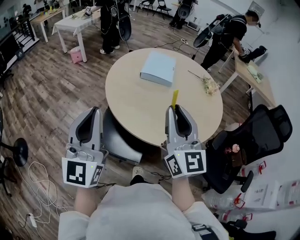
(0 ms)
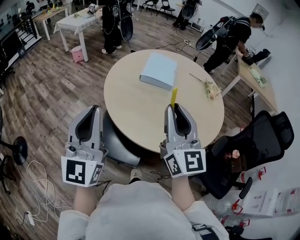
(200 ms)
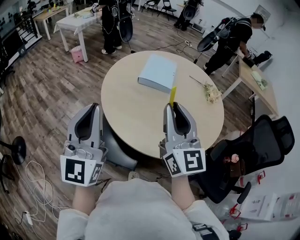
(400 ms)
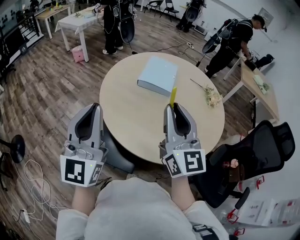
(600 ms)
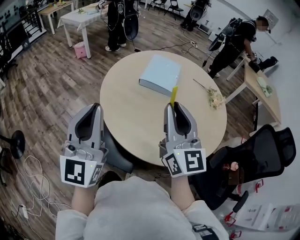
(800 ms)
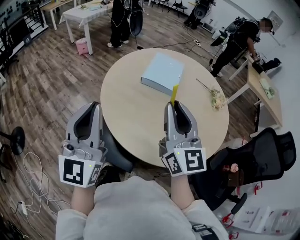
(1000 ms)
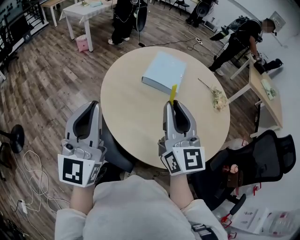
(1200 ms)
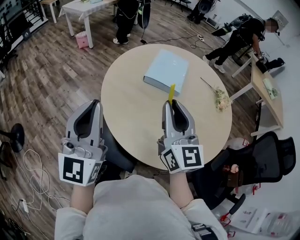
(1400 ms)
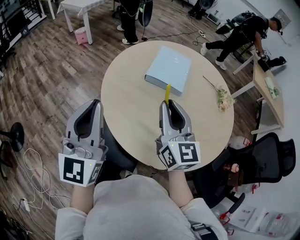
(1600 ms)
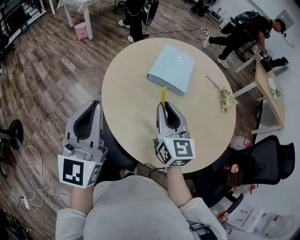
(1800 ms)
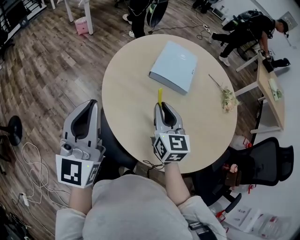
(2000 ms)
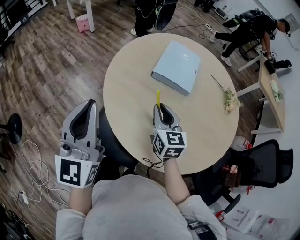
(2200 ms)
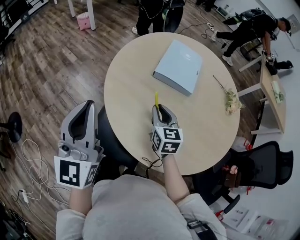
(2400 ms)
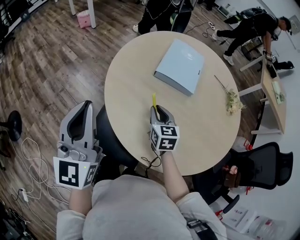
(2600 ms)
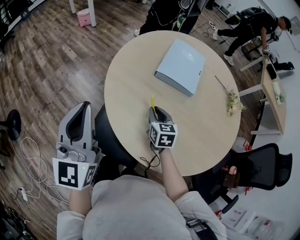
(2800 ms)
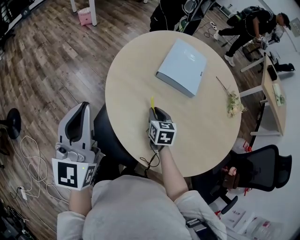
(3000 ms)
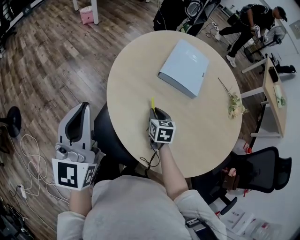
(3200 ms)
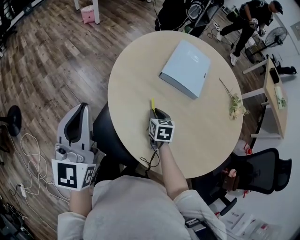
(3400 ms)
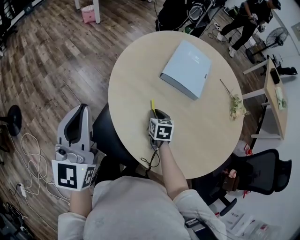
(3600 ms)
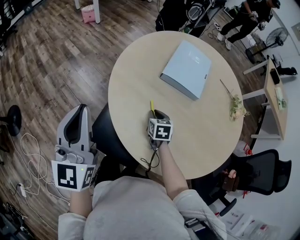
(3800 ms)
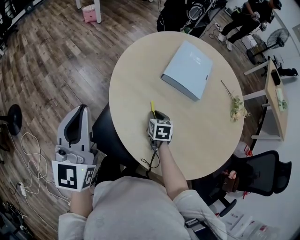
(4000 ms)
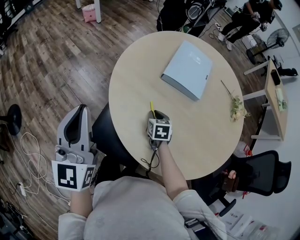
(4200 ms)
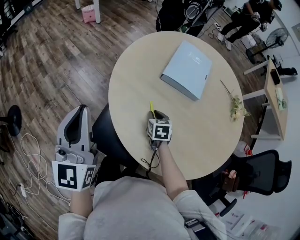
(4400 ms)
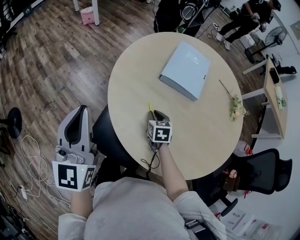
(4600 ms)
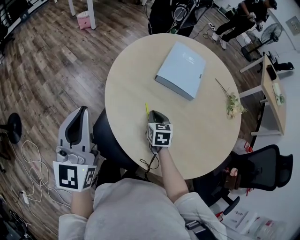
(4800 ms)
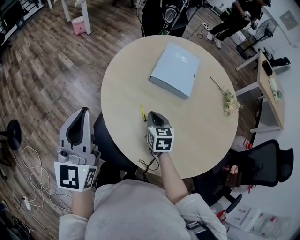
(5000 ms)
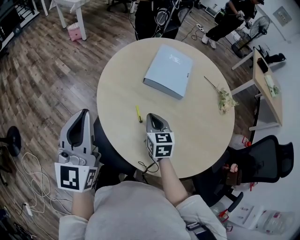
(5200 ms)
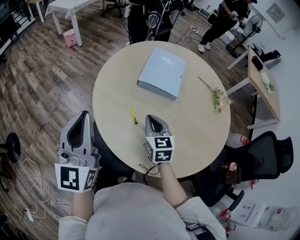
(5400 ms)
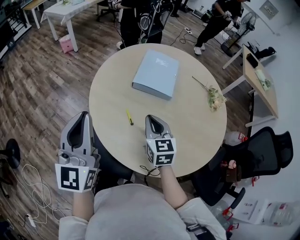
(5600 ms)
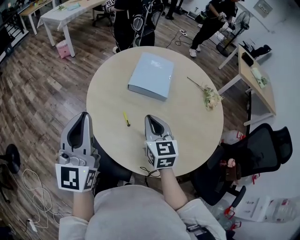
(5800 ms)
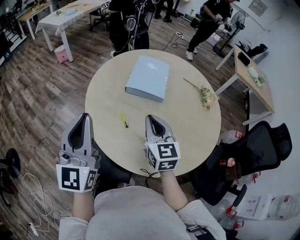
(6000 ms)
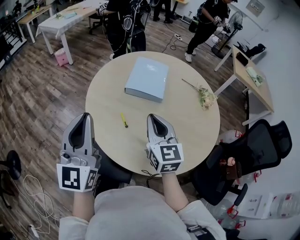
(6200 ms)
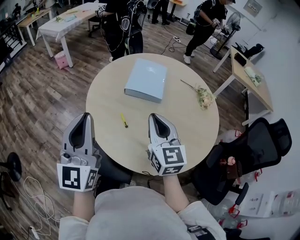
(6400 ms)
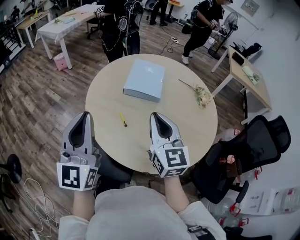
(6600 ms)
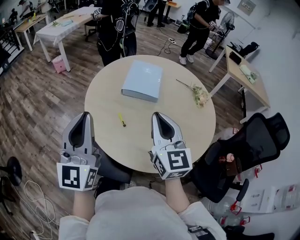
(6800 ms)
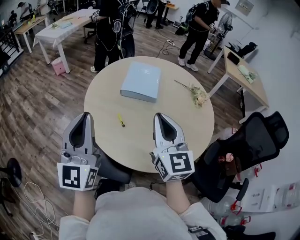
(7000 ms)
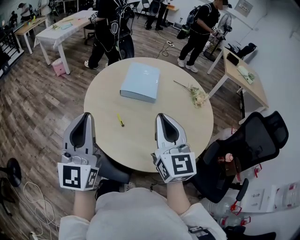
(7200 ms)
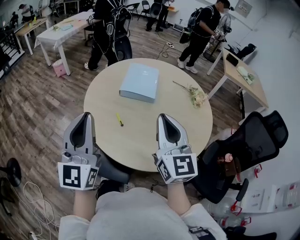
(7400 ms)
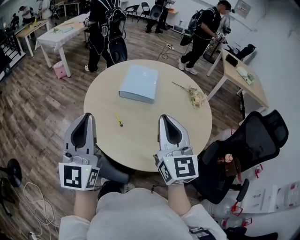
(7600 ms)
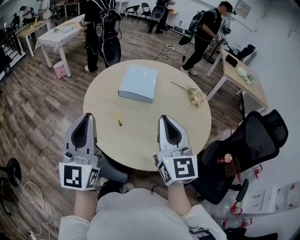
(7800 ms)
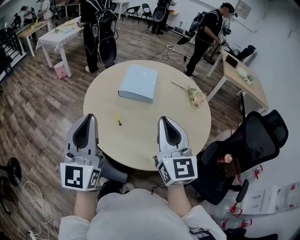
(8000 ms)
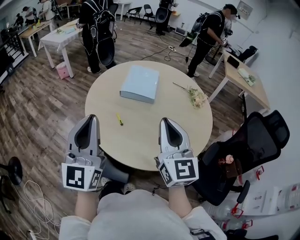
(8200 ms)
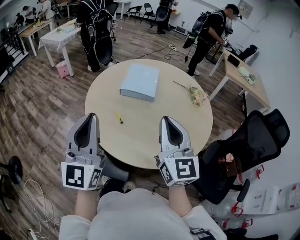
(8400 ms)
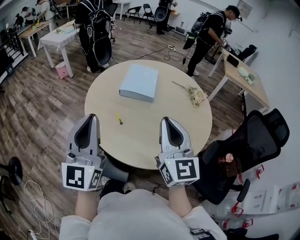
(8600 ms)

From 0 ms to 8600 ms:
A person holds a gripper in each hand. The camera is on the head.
From 0 ms to 1400 ms: The two grippers go about 20 cm forward.
From 1400 ms to 2800 ms: The right gripper moves downward and forward, about 30 cm, and tilts its fingers approximately 40 degrees downward; the left gripper goes approximately 15 cm forward, to the left and downward.
From 2800 ms to 4400 ms: The right gripper shifts some 10 cm downward.
From 4400 ms to 5800 ms: The right gripper heads upward, covering about 25 cm, and angles its fingers upward, by roughly 30 degrees, while the left gripper travels to the right and upward by about 10 cm.
From 5800 ms to 7200 ms: The left gripper travels backward by some 10 cm, while the right gripper travels upward and backward by approximately 20 cm, and rotates approximately 20 degrees.
From 7200 ms to 8600 ms: The right gripper is displaced backward by approximately 5 cm. Meanwhile the left gripper shifts by roughly 5 cm.

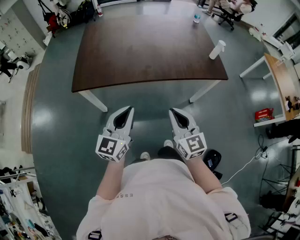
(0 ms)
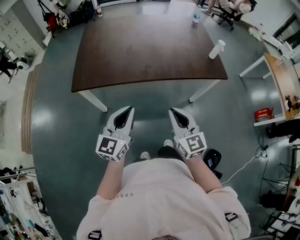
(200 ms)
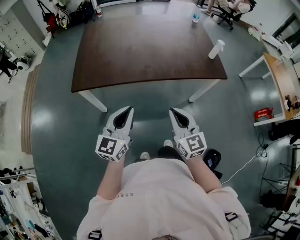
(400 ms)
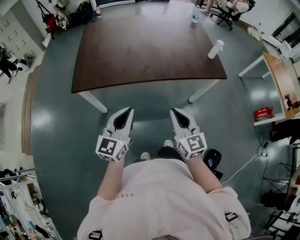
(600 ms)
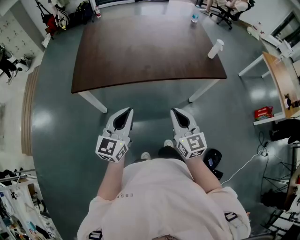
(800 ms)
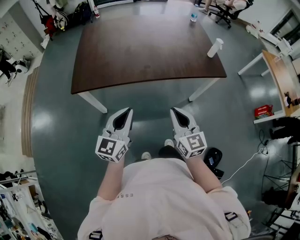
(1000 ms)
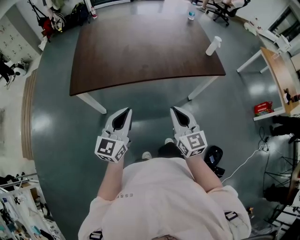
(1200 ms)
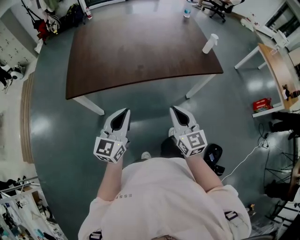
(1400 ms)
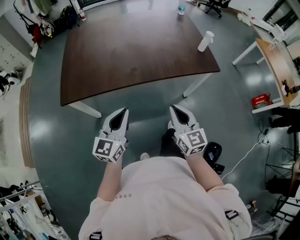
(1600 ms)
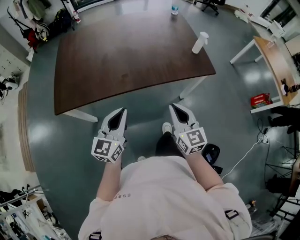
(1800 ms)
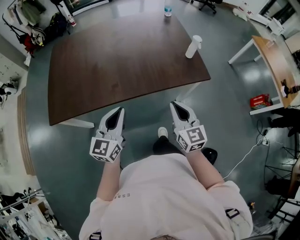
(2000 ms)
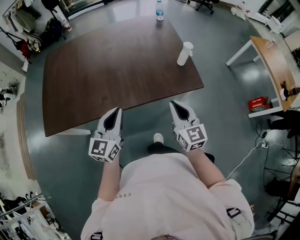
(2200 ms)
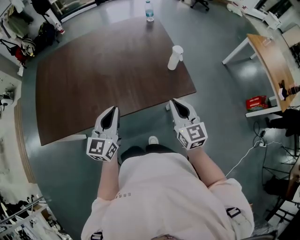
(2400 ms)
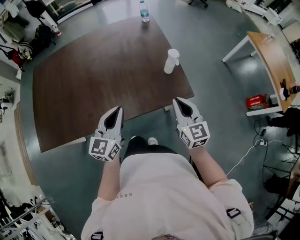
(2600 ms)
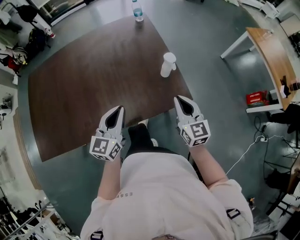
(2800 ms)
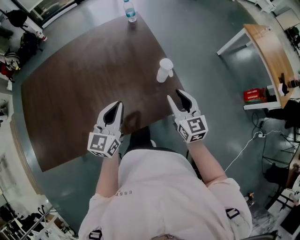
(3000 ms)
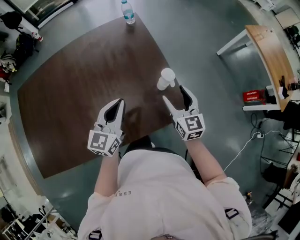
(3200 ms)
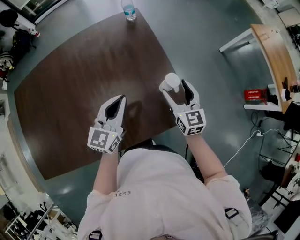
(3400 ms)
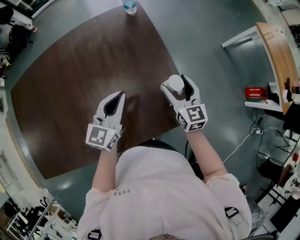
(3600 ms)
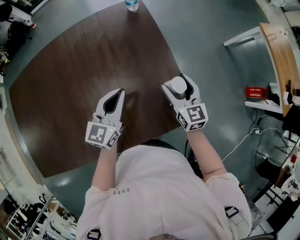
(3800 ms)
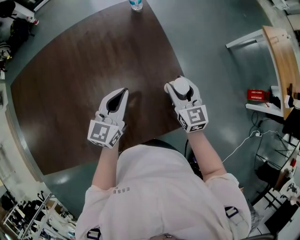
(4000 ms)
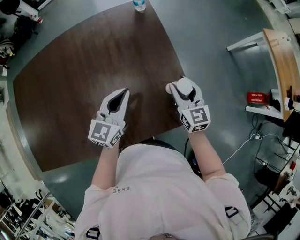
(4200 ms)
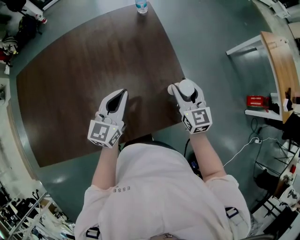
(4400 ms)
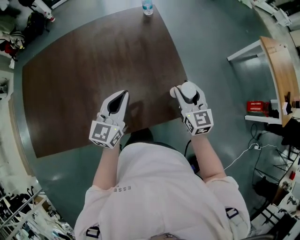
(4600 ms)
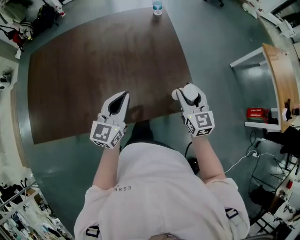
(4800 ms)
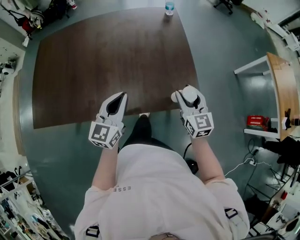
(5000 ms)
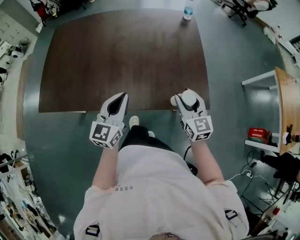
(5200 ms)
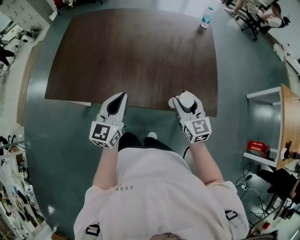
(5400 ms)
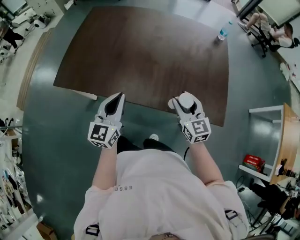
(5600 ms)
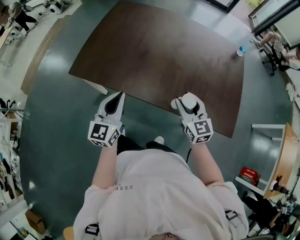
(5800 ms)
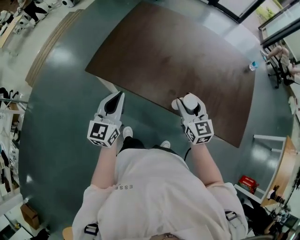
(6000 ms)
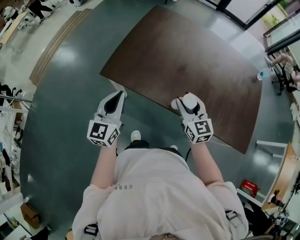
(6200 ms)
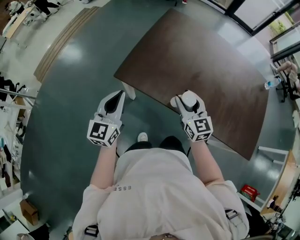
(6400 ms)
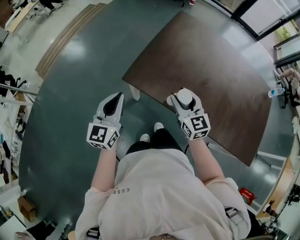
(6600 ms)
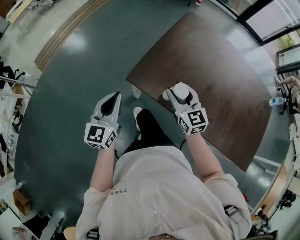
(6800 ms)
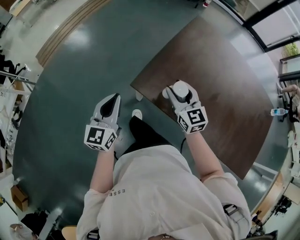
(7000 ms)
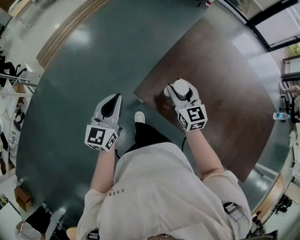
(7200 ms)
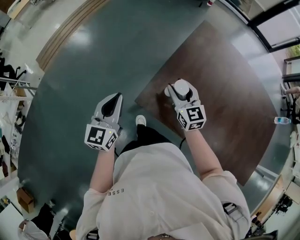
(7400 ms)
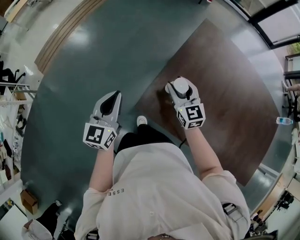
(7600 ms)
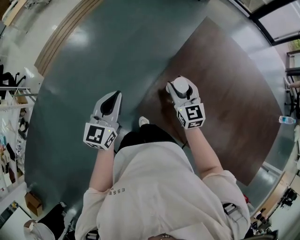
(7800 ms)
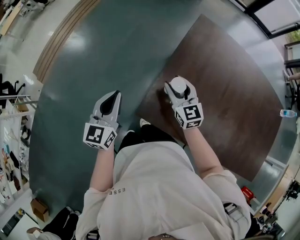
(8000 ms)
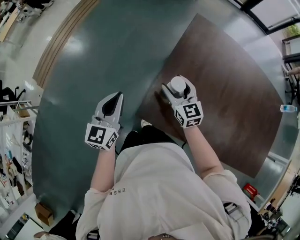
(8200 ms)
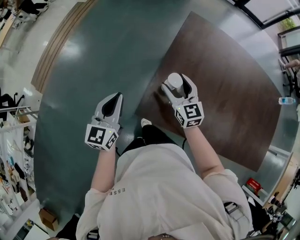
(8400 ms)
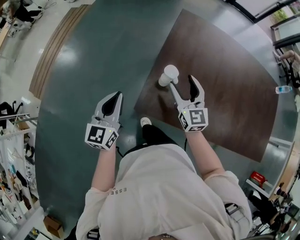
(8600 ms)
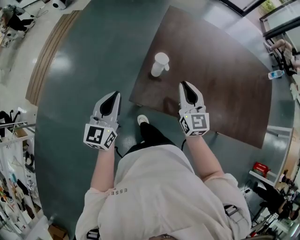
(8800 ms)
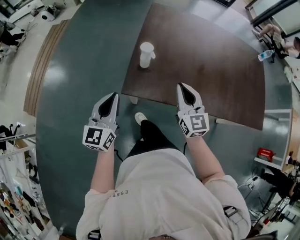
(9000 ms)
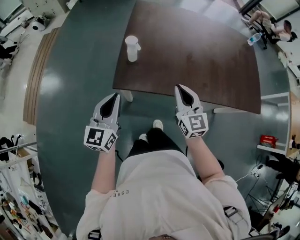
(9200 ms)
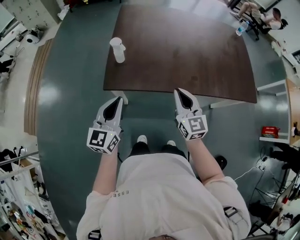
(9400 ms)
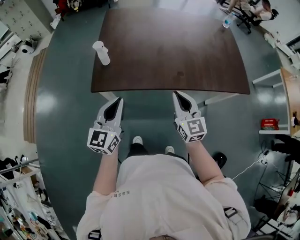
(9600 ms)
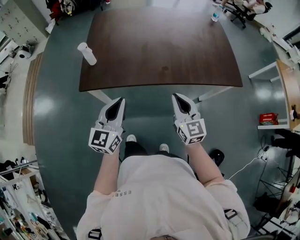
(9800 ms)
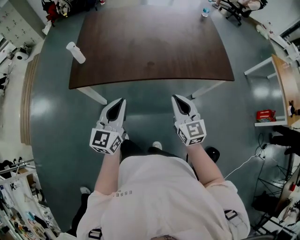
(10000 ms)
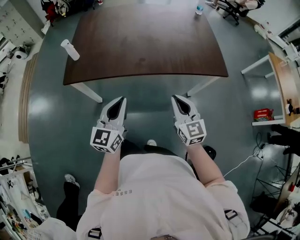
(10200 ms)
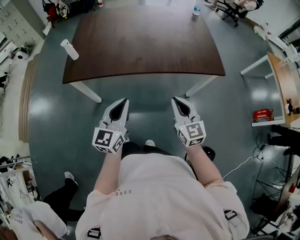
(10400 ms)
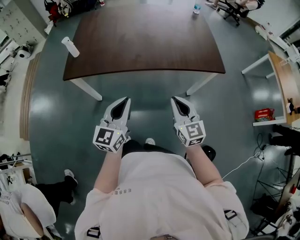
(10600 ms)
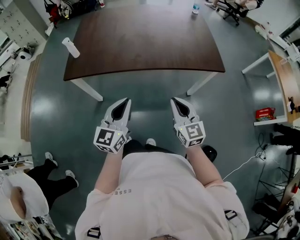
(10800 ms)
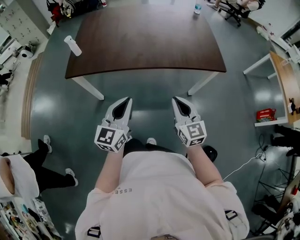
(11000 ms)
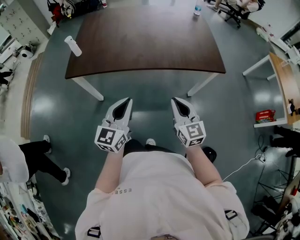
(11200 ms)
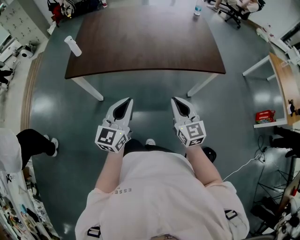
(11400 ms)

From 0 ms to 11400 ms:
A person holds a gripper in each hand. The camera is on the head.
From 0 ms to 1400 ms: The grippers stay close to where they were, moving slightly.
From 1400 ms to 2800 ms: The two grippers travel together, forward and to the right, approximately 40 cm.
From 2800 ms to 4200 ms: Both grippers move forward, some 15 cm. The right gripper opens.
From 4200 ms to 5600 ms: The left gripper changes place by roughly 35 cm, and rotates approximately 40 degrees, while the right gripper changes place by roughly 30 cm, and changes its angle by some 40 degrees.
From 5600 ms to 7200 ms: The pair of grippers is taken some 60 cm. The right gripper turns by roughly 20 degrees. Meanwhile the left gripper changes its angle by about 20 degrees.
From 7200 ms to 8600 ms: The left gripper moves forward, about 10 cm, while the right gripper swivels about 20 degrees, and opens its fingers.
From 8600 ms to 10000 ms: The two grippers travel together, to the right and backward, approximately 50 cm. The left gripper swivels about 30 degrees; the right gripper closes up.
From 10000 ms to 11400 ms: Both grippers travel together to the right and backward, some 10 cm.

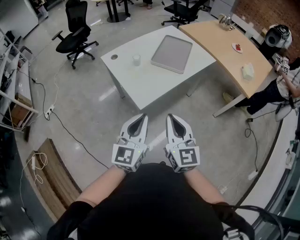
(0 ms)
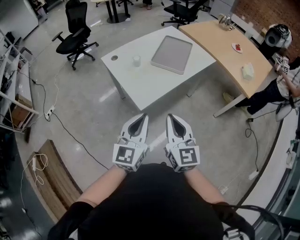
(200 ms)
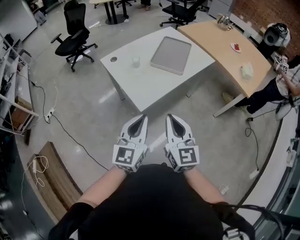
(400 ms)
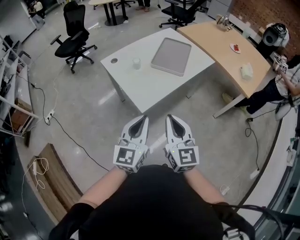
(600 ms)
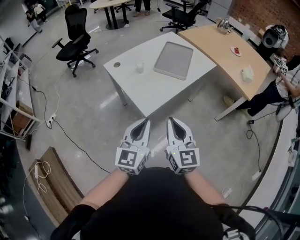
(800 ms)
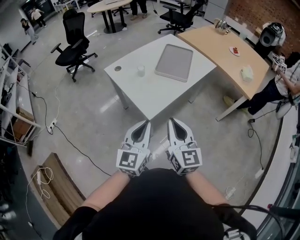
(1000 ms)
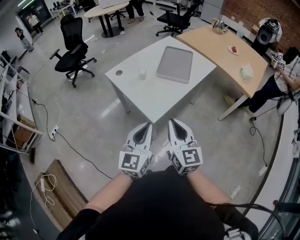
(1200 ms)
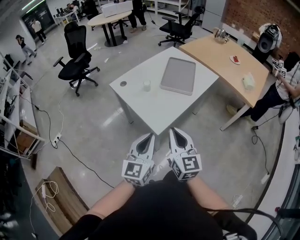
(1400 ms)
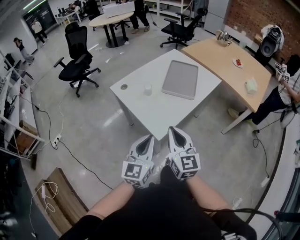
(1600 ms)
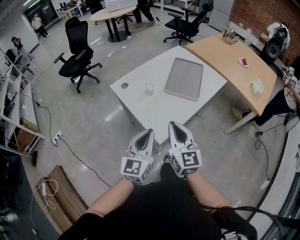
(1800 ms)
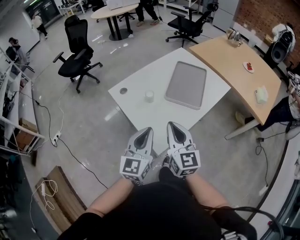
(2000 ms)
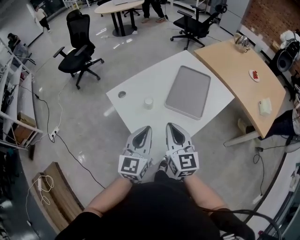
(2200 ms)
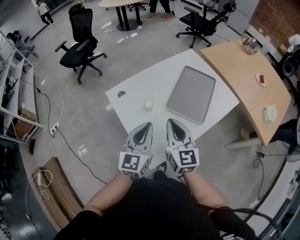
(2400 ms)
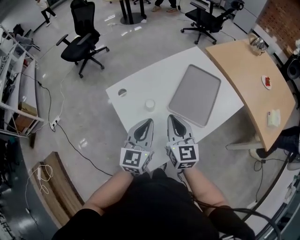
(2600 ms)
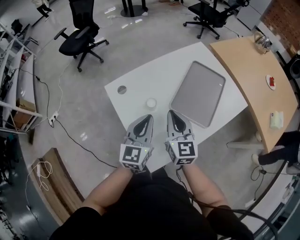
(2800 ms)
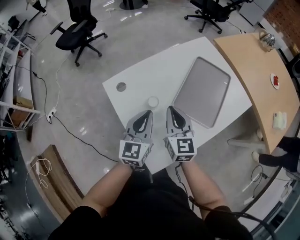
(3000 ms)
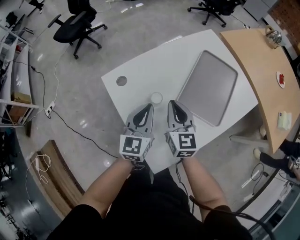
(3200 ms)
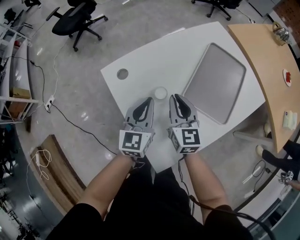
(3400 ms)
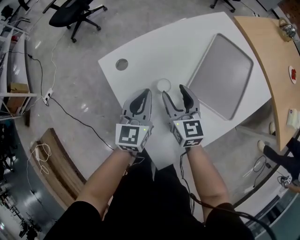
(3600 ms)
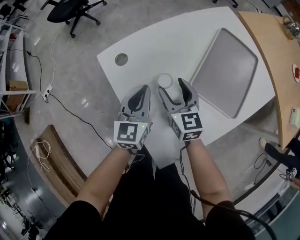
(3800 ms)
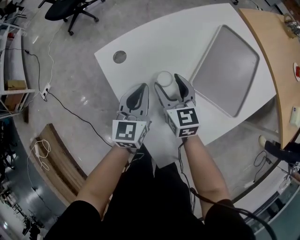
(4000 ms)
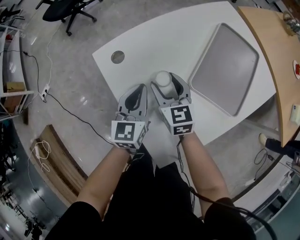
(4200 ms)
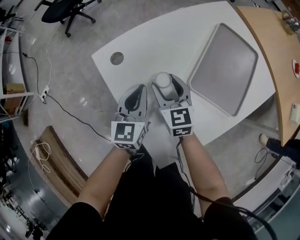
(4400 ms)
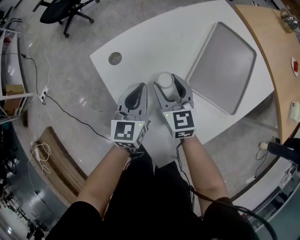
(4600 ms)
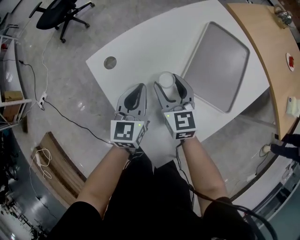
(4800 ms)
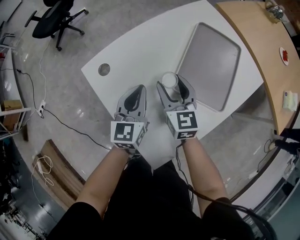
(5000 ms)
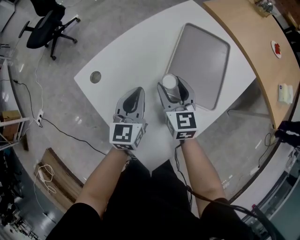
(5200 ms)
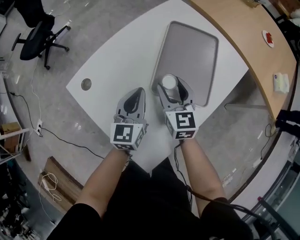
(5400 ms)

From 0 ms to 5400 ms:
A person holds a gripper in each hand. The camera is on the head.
From 0 ms to 1400 ms: Both grippers travel together to the left, approximately 10 cm.
From 1400 ms to 2800 ms: The pair of grippers is taken forward, about 40 cm.
From 2800 ms to 4000 ms: The two grippers go some 25 cm downward, forward and to the left. The right gripper opens up.
From 4000 ms to 5400 ms: The grippers both shift to the right by some 15 cm. The right gripper turns by approximately 20 degrees.
